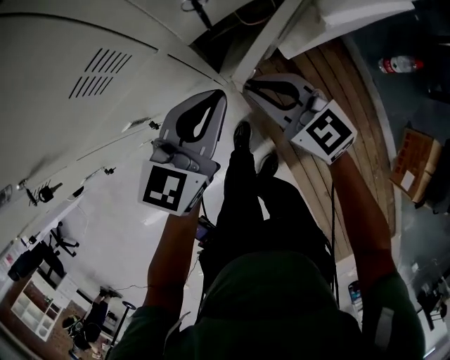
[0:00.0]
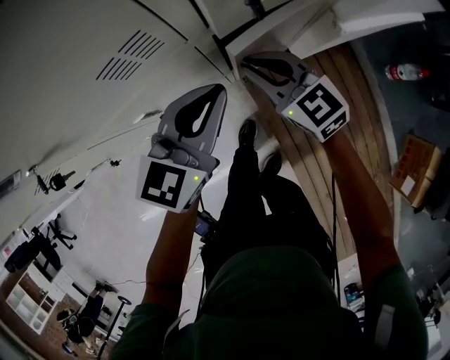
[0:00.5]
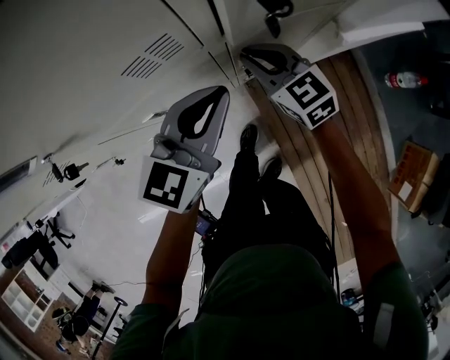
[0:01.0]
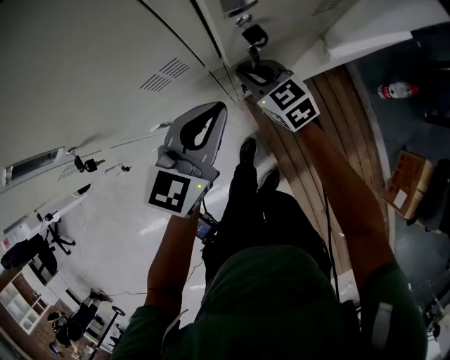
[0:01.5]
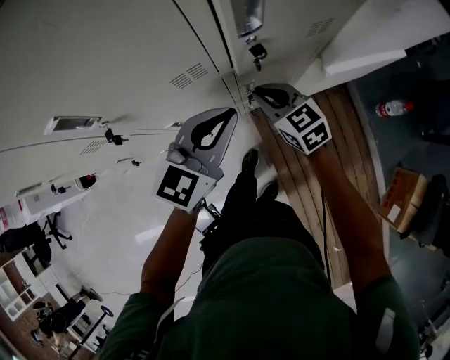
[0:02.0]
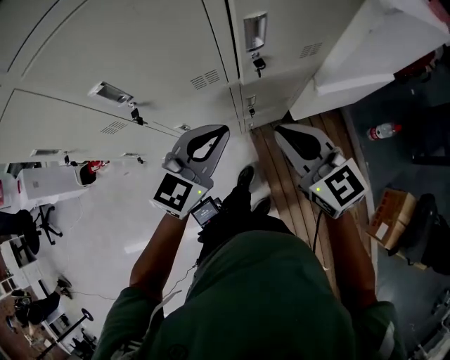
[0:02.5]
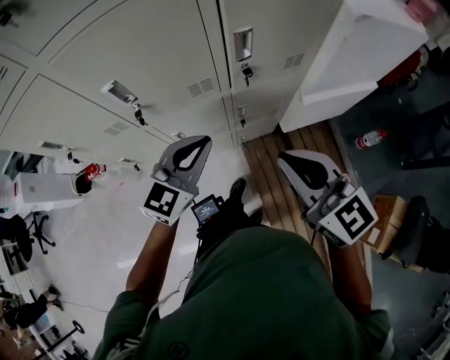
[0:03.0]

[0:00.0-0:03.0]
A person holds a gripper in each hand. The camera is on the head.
0:00.0 to 0:01.5: The right gripper is displaced forward by some 10 cm. The left gripper is displaced upward by approximately 5 cm.
0:01.5 to 0:03.0: The left gripper moves upward and backward, some 20 cm, while the right gripper goes approximately 40 cm upward and backward, and changes its angle by about 20 degrees.

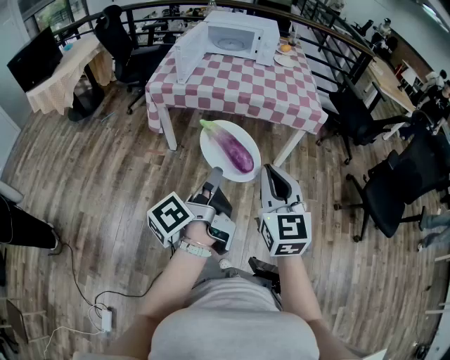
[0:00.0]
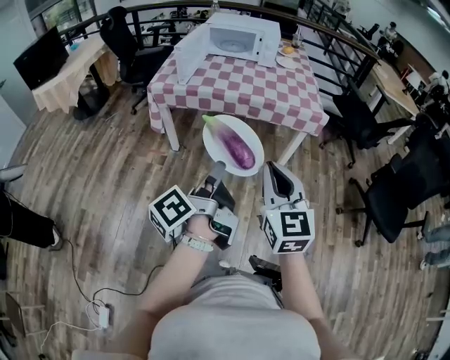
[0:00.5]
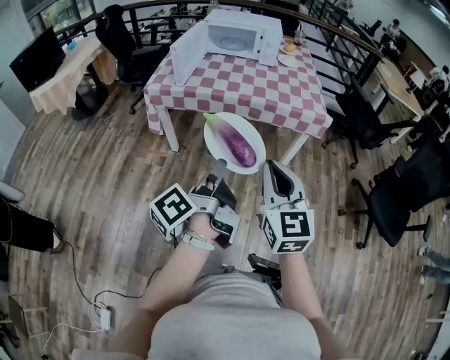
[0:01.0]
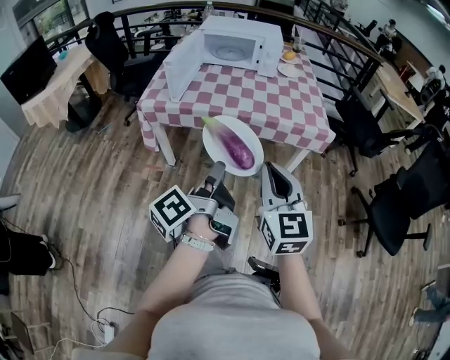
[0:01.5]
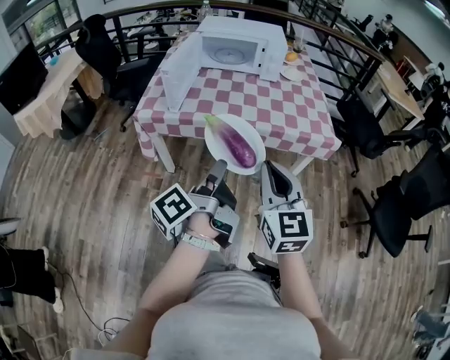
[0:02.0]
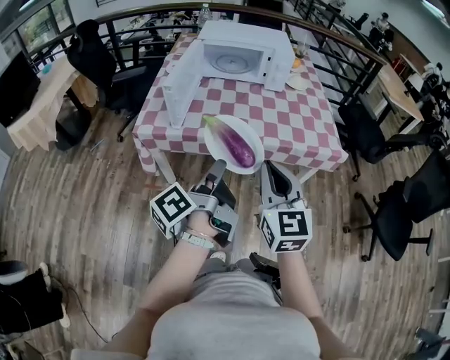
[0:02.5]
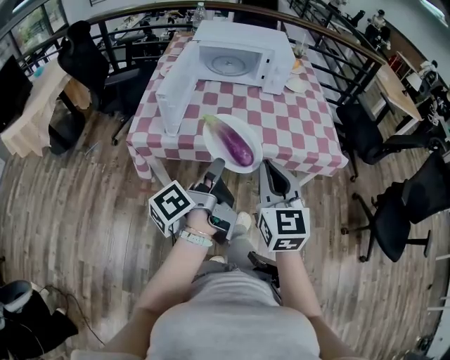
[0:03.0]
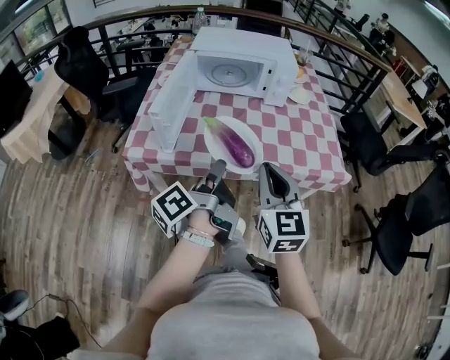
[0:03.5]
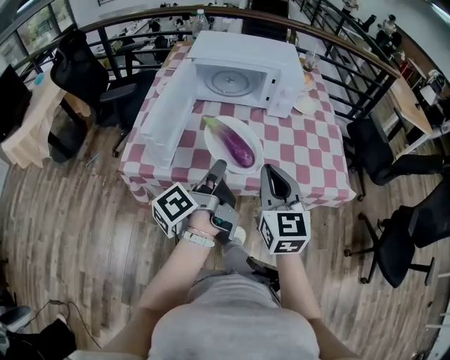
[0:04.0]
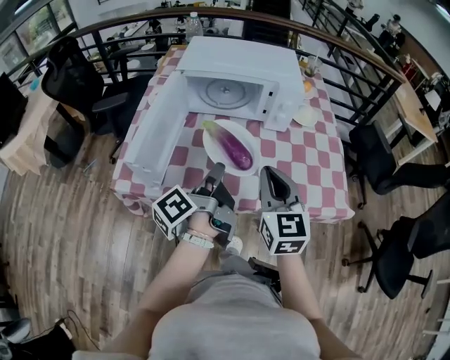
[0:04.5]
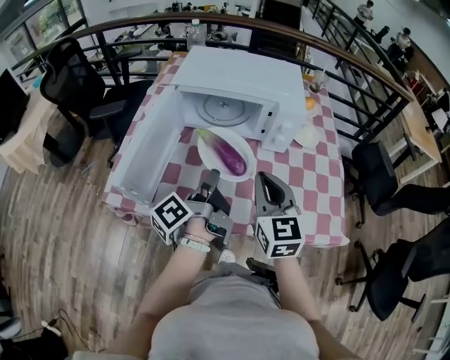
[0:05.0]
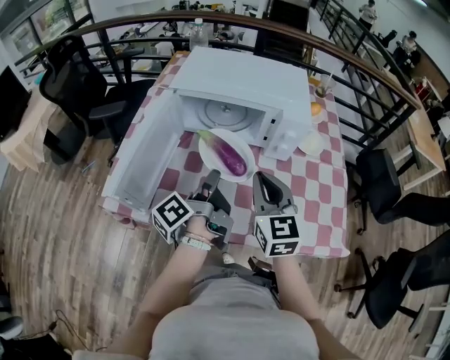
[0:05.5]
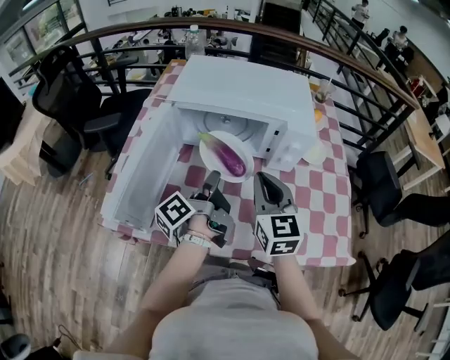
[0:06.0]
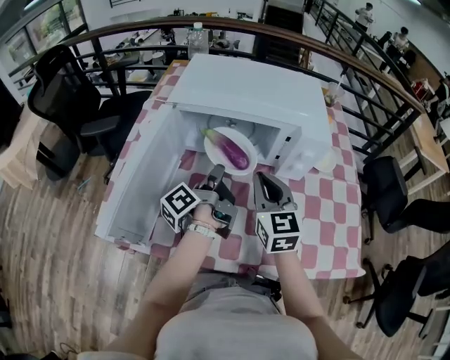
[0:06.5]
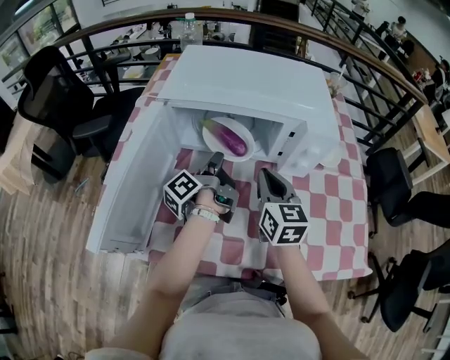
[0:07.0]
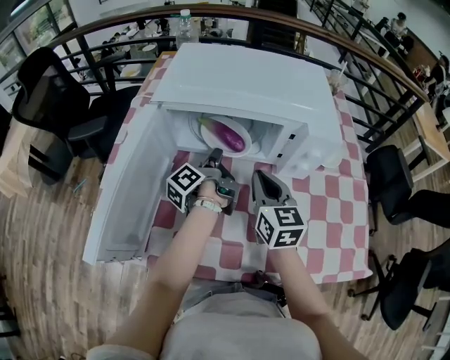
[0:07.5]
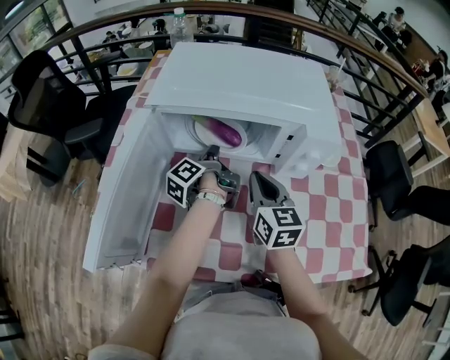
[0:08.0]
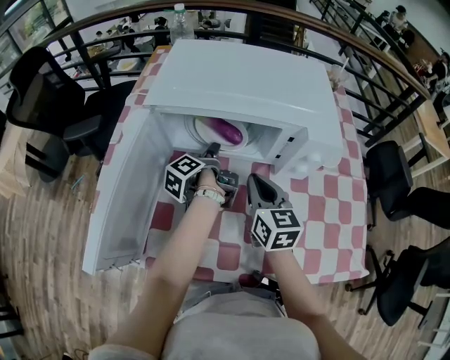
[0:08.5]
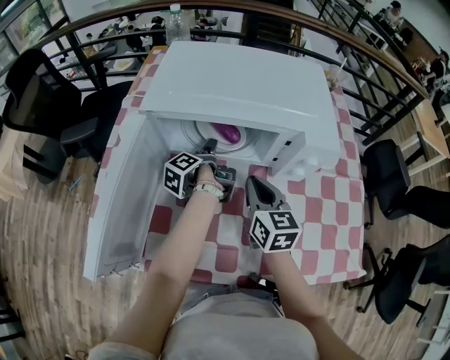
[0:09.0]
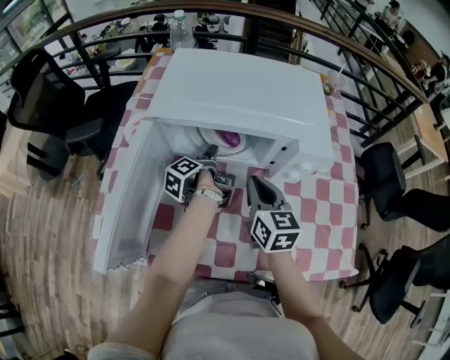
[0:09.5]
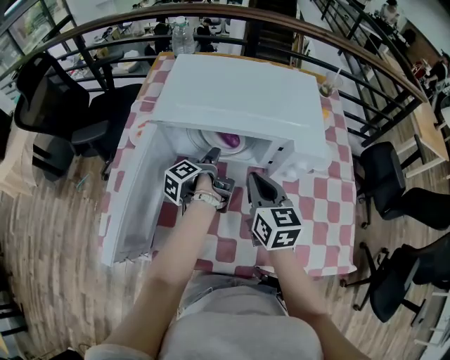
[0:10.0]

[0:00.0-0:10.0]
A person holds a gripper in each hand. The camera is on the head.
0:00.0 to 0:02.0: The right gripper moves roughly 25 cm.
0:02.0 to 0:04.0: The right gripper shifts by roughly 30 cm.
0:04.0 to 0:06.0: The right gripper moves some 25 cm.
0:06.0 to 0:08.0: The right gripper moves downward, about 10 cm.
0:08.0 to 0:10.0: The right gripper travels upward by approximately 5 cm.

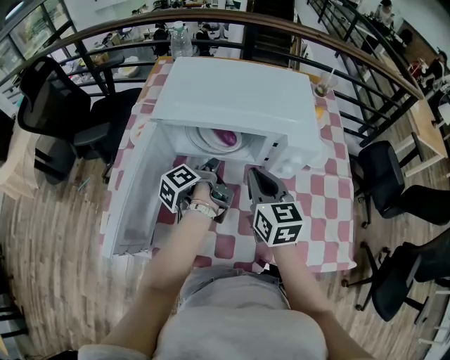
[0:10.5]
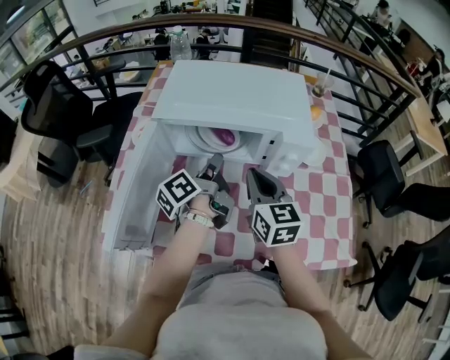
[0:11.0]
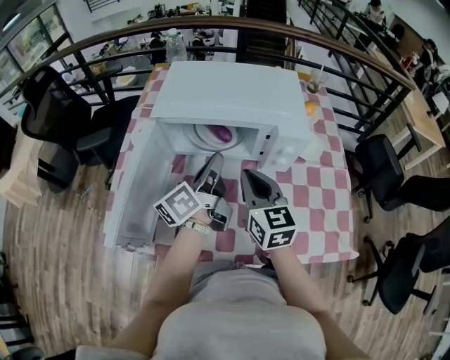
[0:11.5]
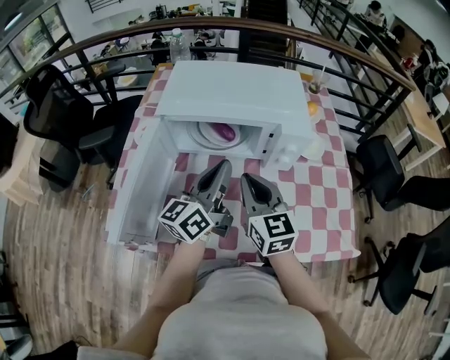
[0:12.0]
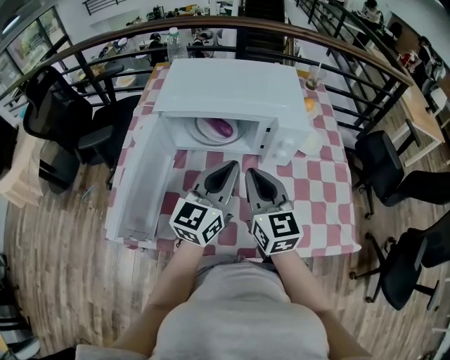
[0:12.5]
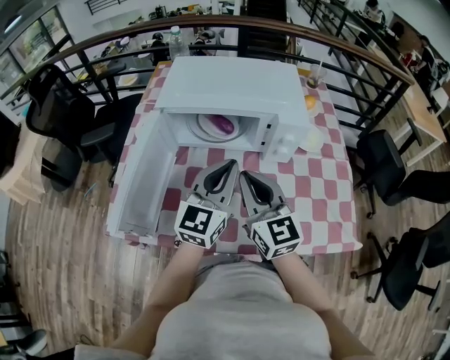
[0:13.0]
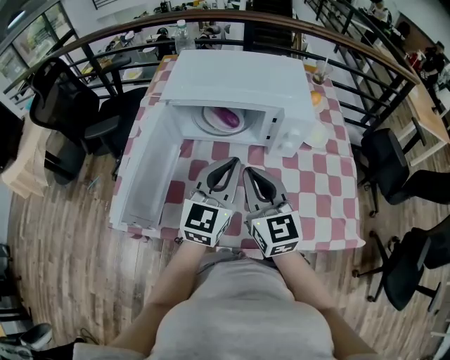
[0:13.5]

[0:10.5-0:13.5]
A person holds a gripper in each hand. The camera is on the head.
0:10.5 to 0:12.0: The right gripper moves about 5 cm.

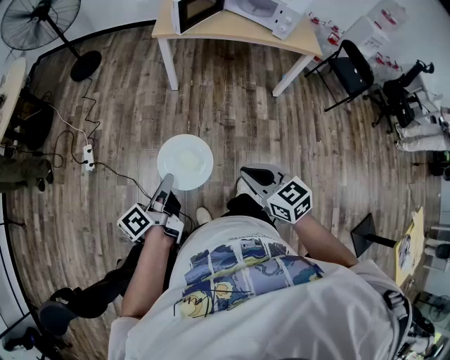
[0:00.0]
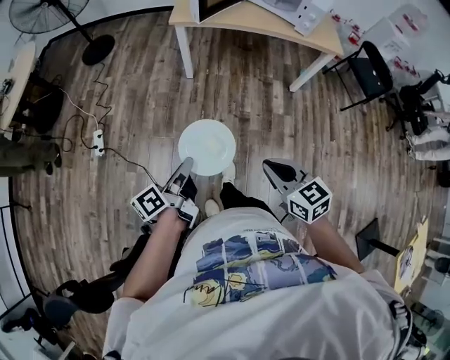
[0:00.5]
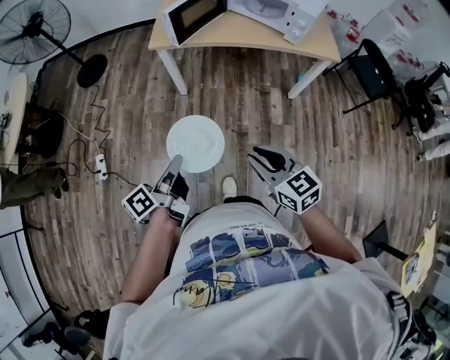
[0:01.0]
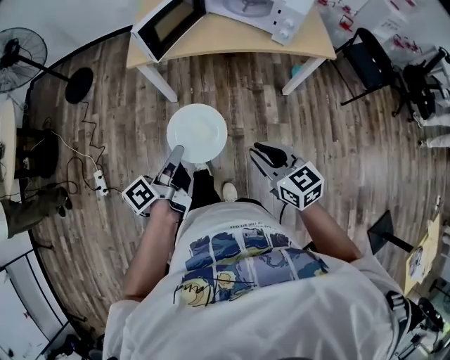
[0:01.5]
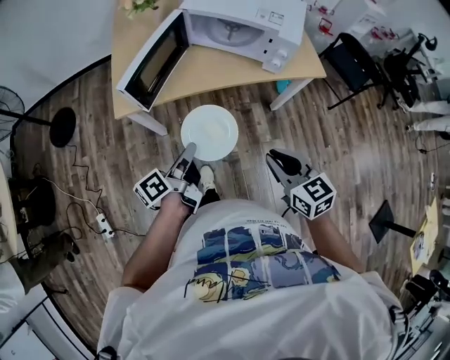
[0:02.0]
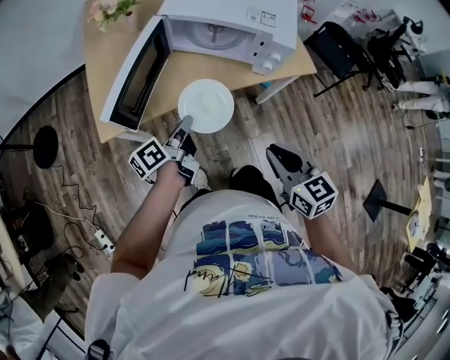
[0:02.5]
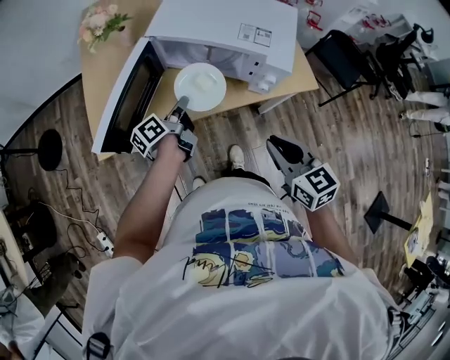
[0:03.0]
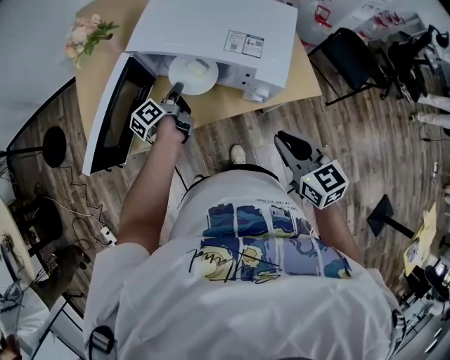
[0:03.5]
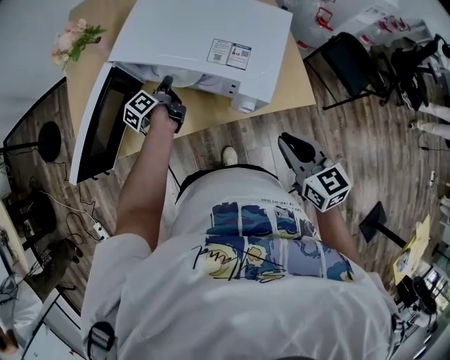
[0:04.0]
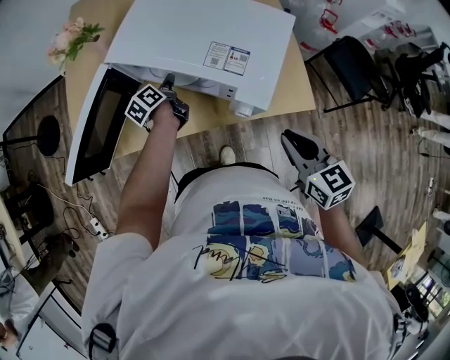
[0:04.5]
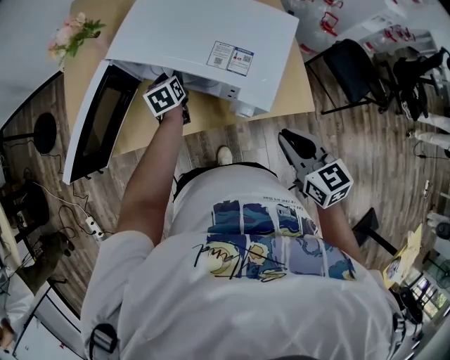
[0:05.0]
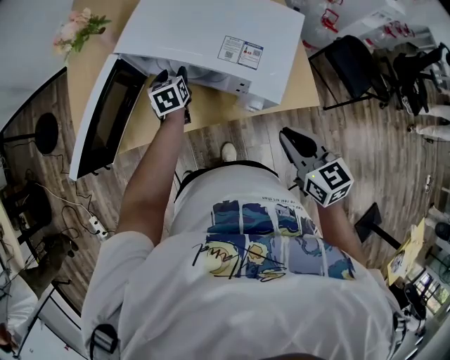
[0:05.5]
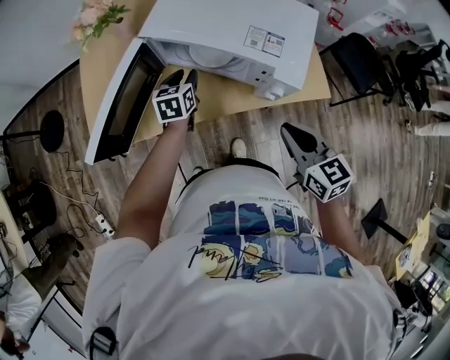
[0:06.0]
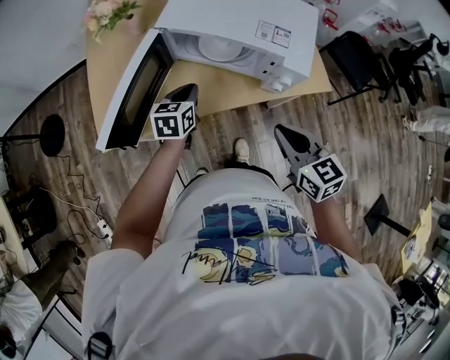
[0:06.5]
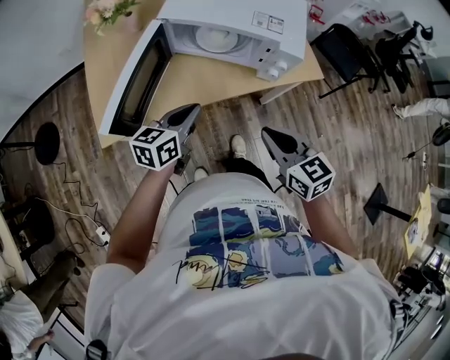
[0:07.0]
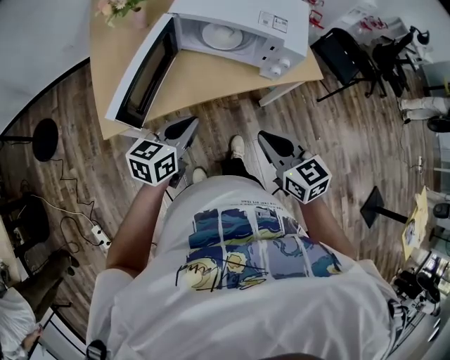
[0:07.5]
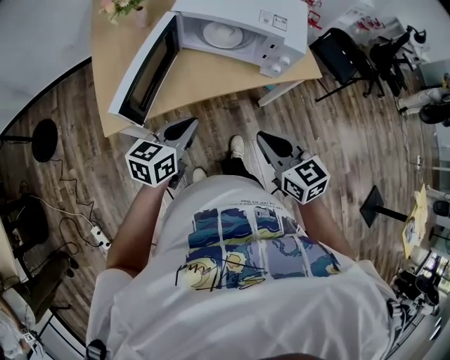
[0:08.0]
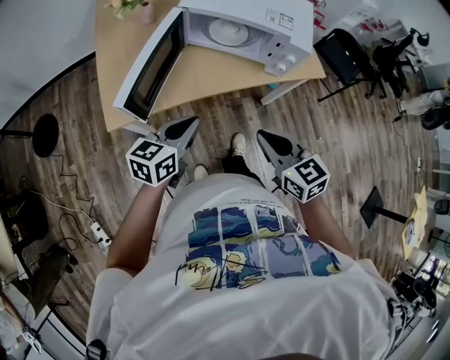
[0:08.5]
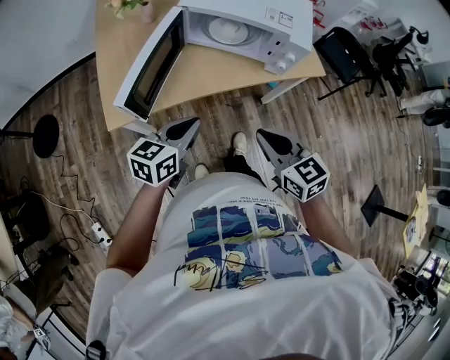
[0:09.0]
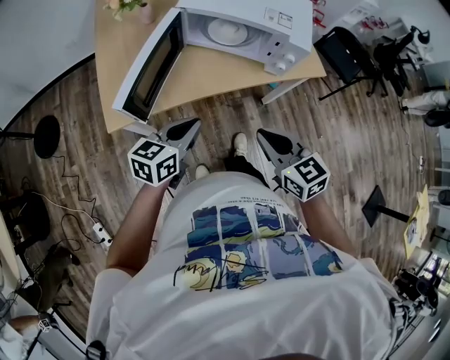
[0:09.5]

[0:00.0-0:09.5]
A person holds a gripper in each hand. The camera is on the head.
0:00.0 to 0:02.0: Both grippers are carried forward, roughly 50 cm. The right gripper rotates roughly 30 degrees.
0:02.0 to 0:04.0: The right gripper is displaced forward and to the right by approximately 30 cm, while the left gripper goes about 40 cm forward.
0:04.0 to 0:05.5: The left gripper rotates around the line of its fingers by approximately 50 degrees, clockwise from behind, and opens its fingers.
0:05.5 to 0:07.5: The left gripper goes roughly 35 cm backward and upward, turns by about 50 degrees, and closes its fingers. Meanwhile the right gripper heads to the left and backward, covering approximately 25 cm.
0:07.5 to 0:09.5: There are only small adjustments of the grippers.

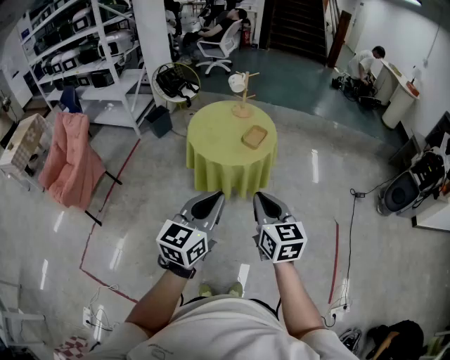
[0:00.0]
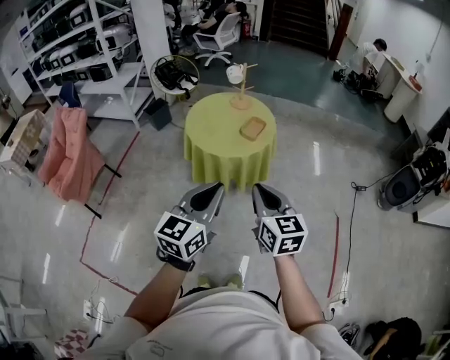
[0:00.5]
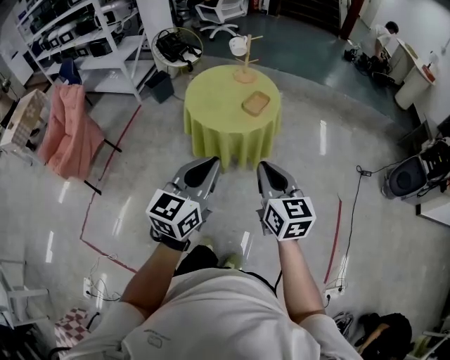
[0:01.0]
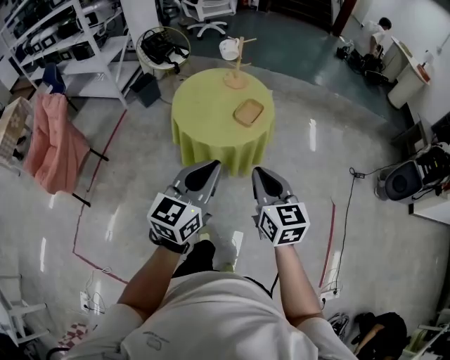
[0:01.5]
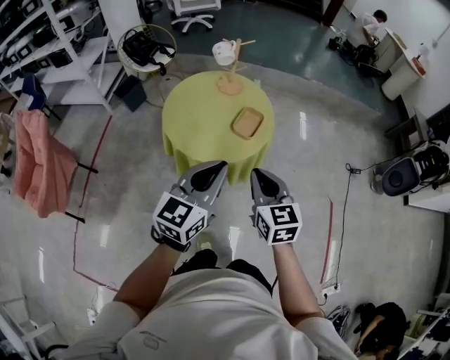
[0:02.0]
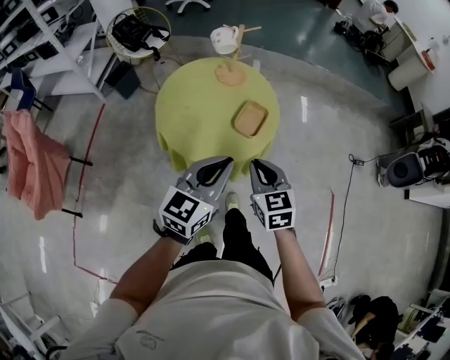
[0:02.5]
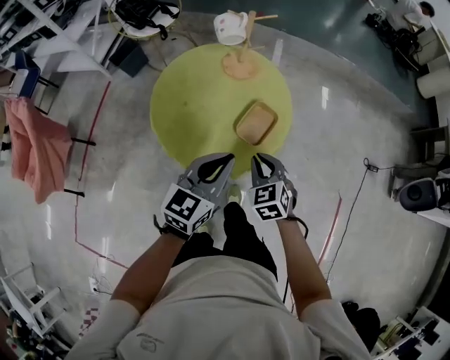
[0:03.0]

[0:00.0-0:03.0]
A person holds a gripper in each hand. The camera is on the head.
0:00.0 to 0:01.5: The grippers both shift forward by roughly 10 cm.
0:01.5 to 0:03.0: The grippers both shift forward and downward by approximately 35 cm. The right gripper turns by some 40 degrees.
